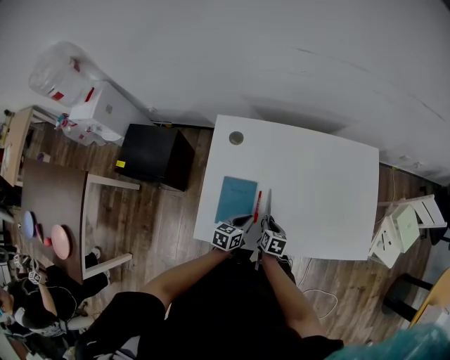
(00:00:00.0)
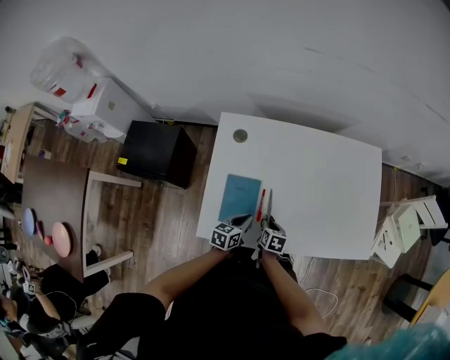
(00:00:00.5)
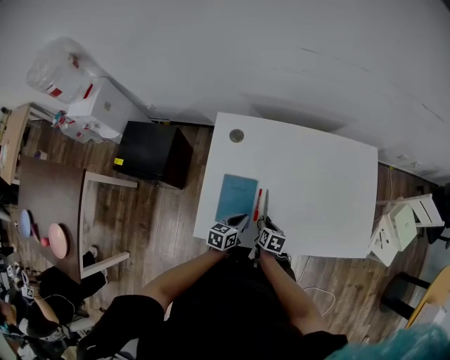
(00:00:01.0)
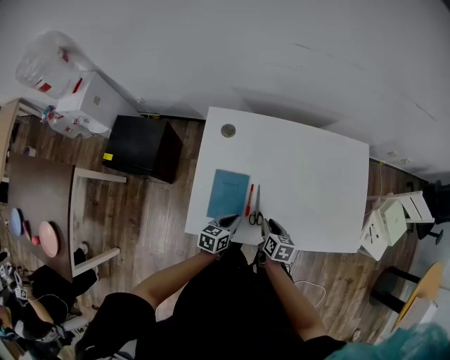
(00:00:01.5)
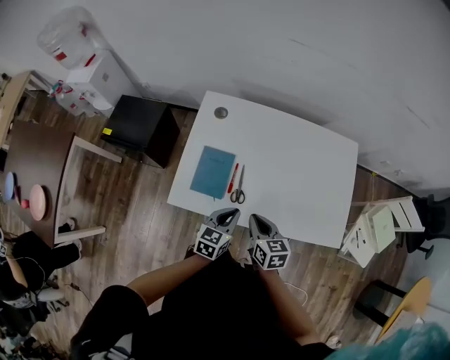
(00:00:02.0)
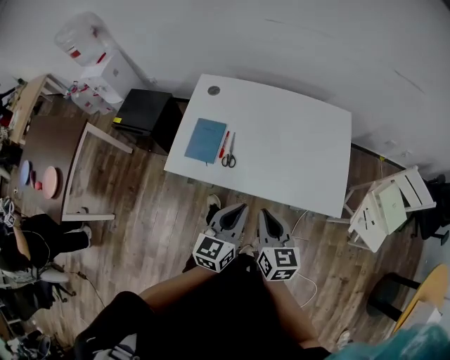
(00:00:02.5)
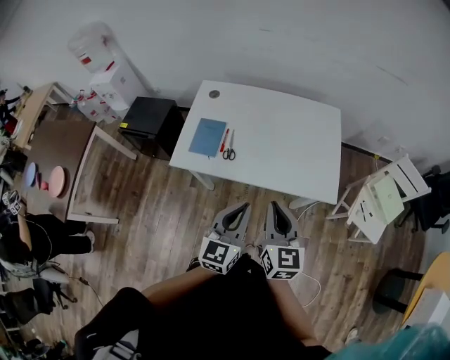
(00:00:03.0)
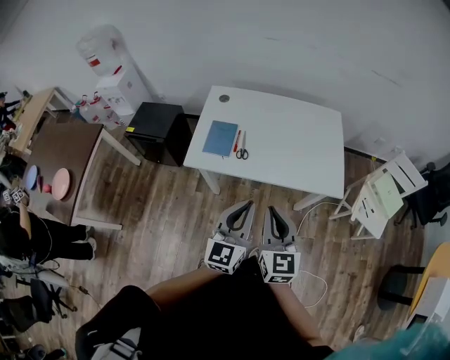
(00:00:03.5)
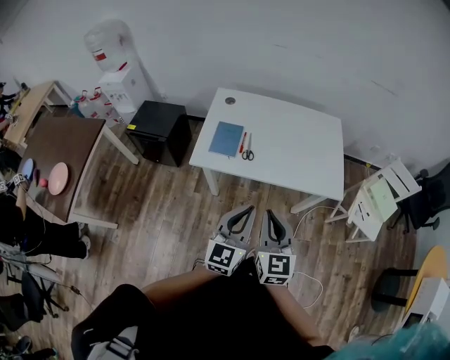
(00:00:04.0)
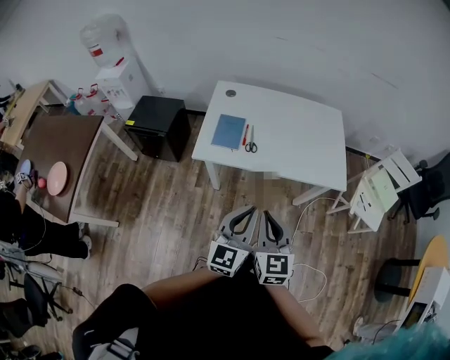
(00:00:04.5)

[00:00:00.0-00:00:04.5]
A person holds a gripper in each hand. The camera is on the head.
00:00:00.0 to 00:00:02.0: The right gripper travels upward by approximately 20 cm, and swivels about 30 degrees, while the left gripper goes about 15 cm upward, backward and to the right.
00:00:02.0 to 00:00:04.5: Both grippers move backward and upward, roughly 40 cm. The right gripper turns by some 30 degrees. The left gripper changes its angle by approximately 30 degrees.

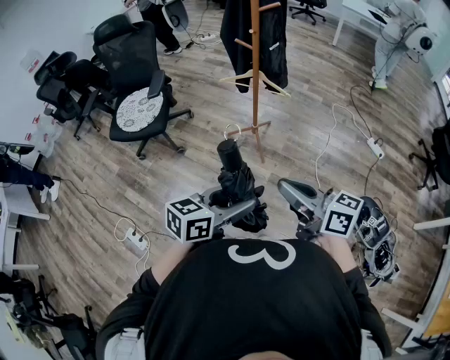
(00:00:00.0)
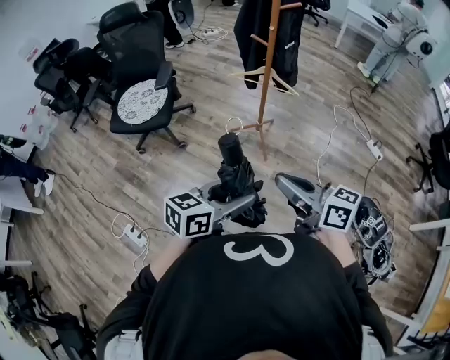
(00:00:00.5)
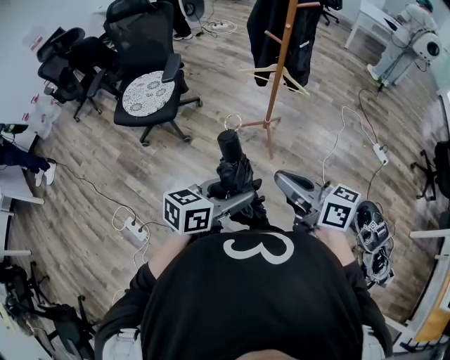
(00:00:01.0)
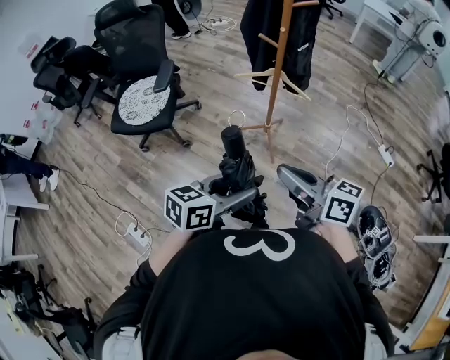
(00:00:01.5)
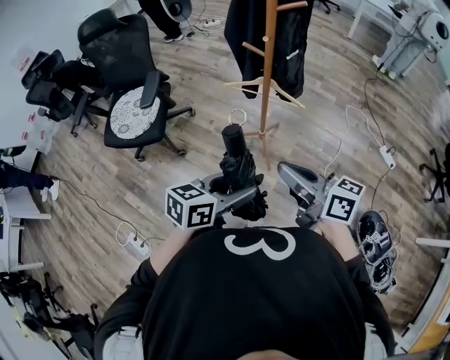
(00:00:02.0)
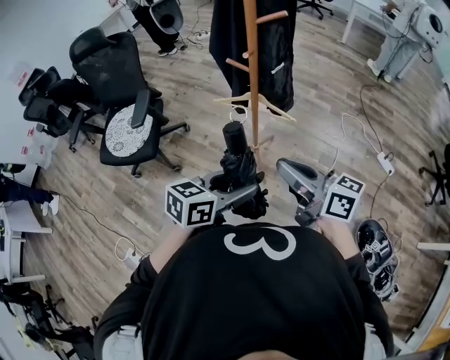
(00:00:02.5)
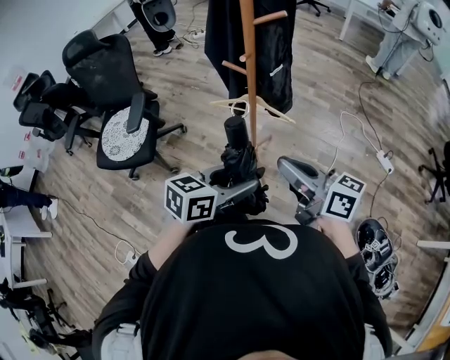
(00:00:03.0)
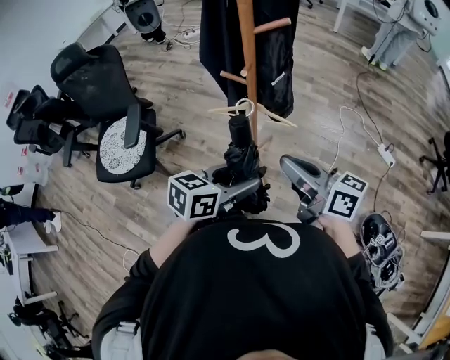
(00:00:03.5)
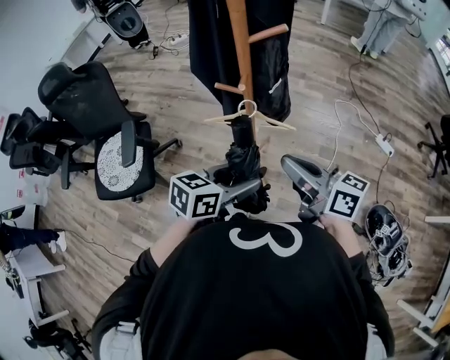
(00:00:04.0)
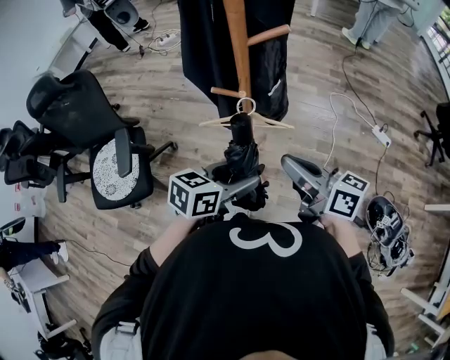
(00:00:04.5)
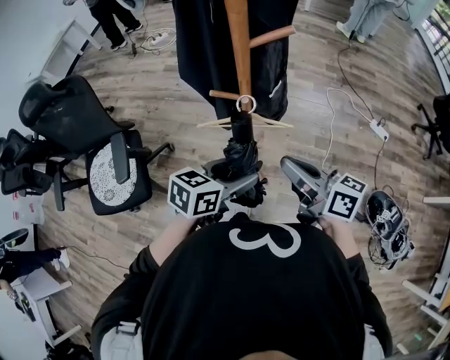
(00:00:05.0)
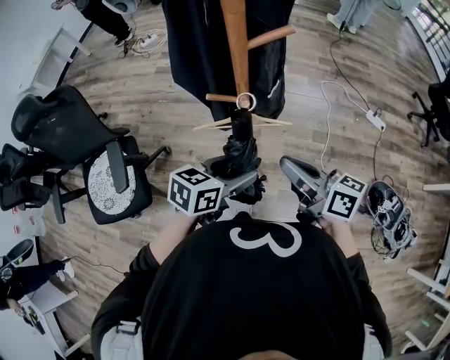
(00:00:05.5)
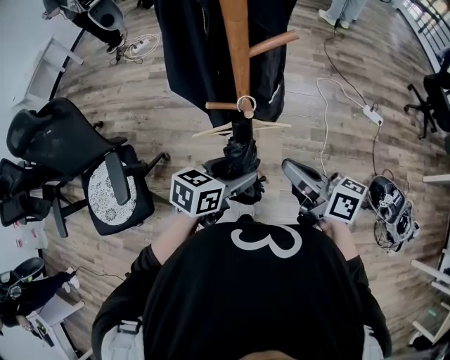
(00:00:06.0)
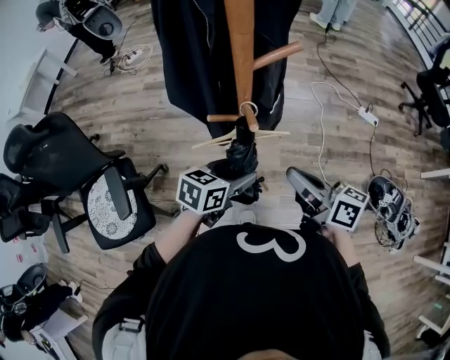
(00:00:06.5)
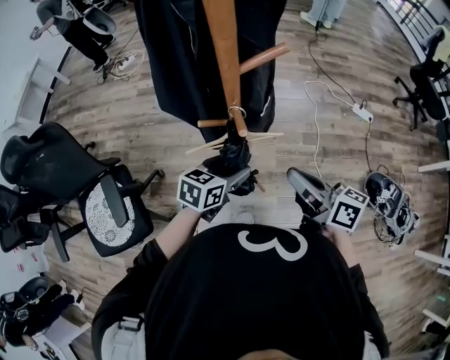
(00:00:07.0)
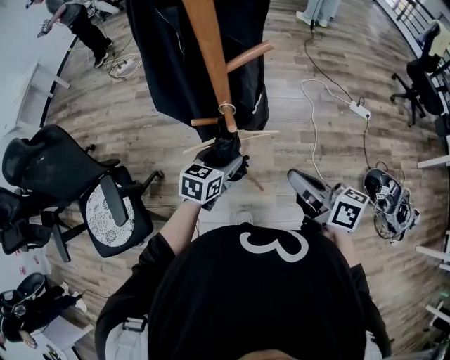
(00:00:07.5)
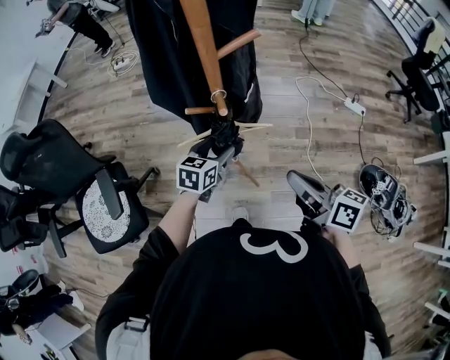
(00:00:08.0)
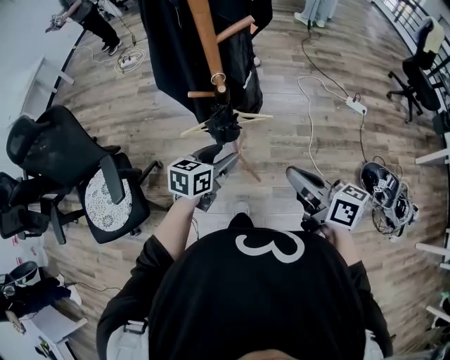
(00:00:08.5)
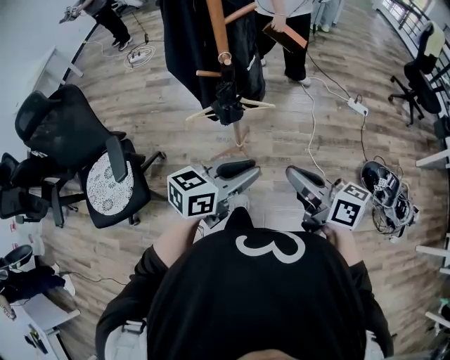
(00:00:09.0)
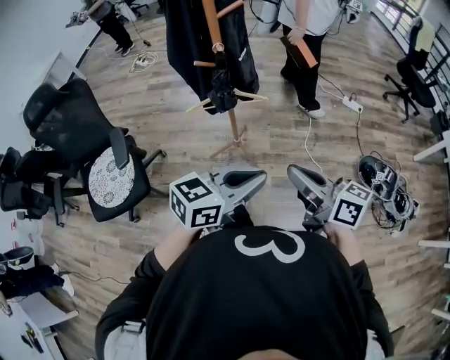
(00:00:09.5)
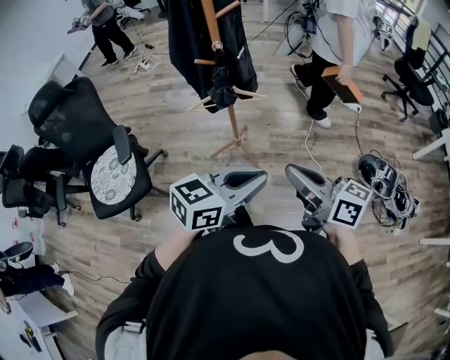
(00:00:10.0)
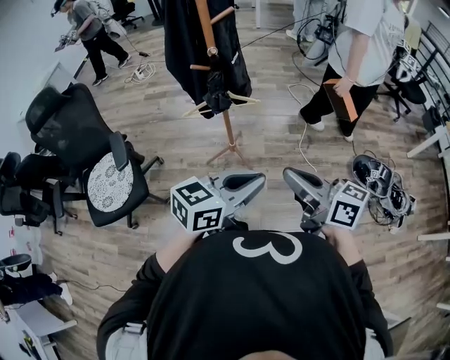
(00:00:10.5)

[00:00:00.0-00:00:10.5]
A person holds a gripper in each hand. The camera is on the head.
00:00:00.0 to 00:00:02.0: The grippers both shift forward by about 25 cm.
00:00:02.0 to 00:00:04.0: Both grippers move forward, about 20 cm.
00:00:04.0 to 00:00:06.5: The right gripper shifts about 5 cm forward, and swivels roughly 20 degrees, while the left gripper shifts some 15 cm forward, downward and to the left.
00:00:06.5 to 00:00:08.5: The right gripper moves backward and to the right, some 15 cm. Meanwhile the left gripper travels backward by about 5 cm.
00:00:08.5 to 00:00:10.5: The left gripper heads backward, upward and to the right, covering some 40 cm, changes its angle by about 30 degrees, and closes up. The right gripper heads backward, covering roughly 25 cm.

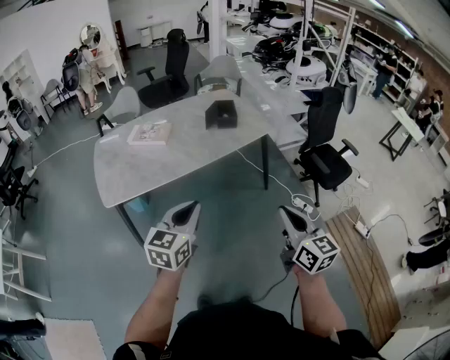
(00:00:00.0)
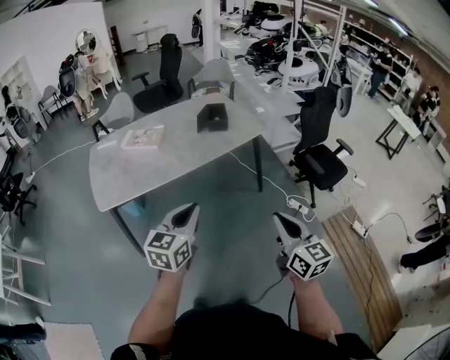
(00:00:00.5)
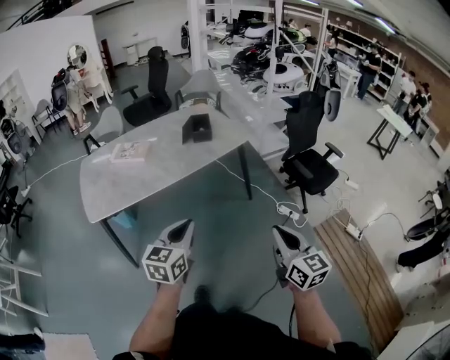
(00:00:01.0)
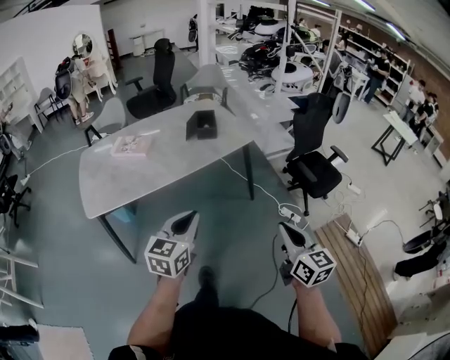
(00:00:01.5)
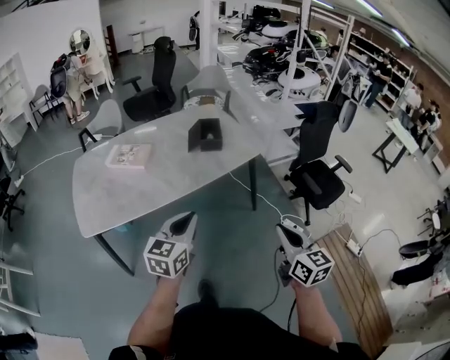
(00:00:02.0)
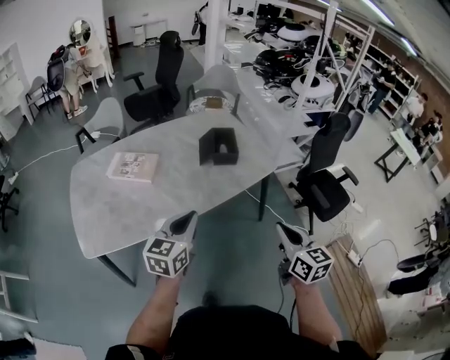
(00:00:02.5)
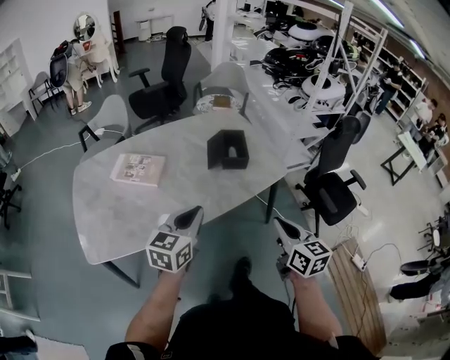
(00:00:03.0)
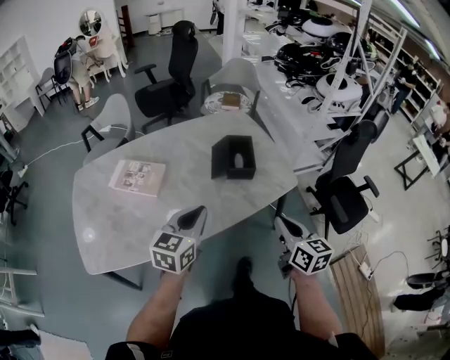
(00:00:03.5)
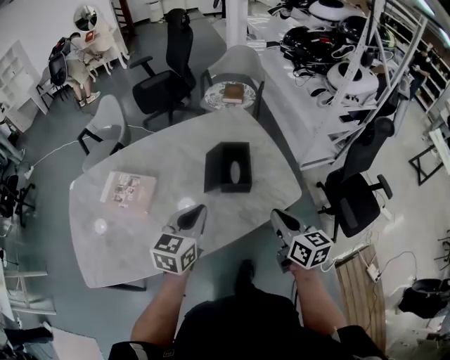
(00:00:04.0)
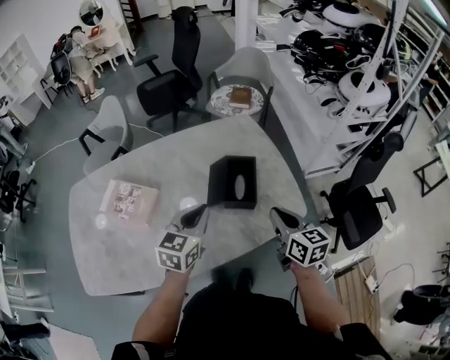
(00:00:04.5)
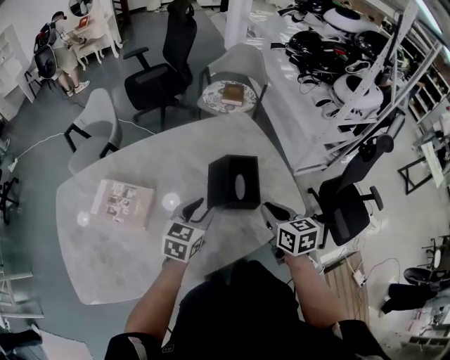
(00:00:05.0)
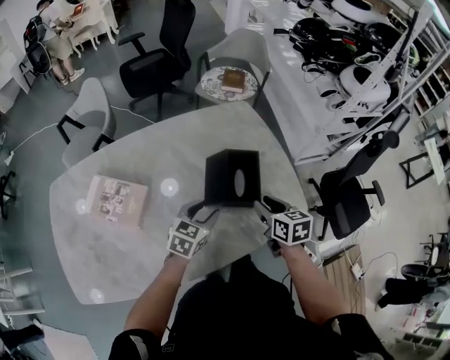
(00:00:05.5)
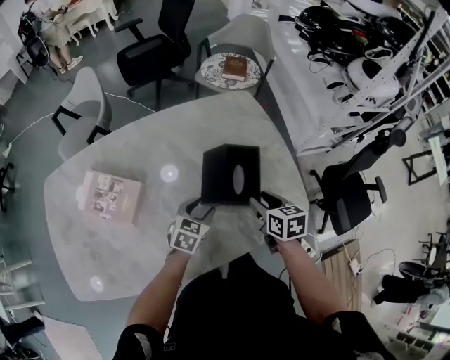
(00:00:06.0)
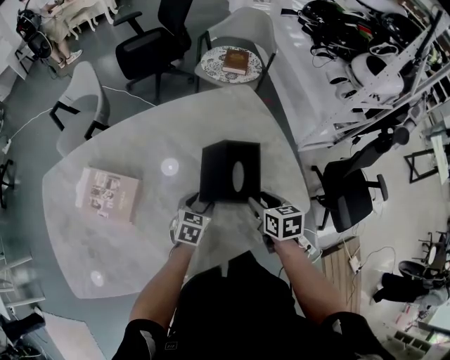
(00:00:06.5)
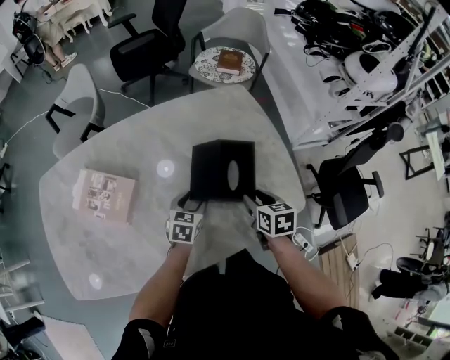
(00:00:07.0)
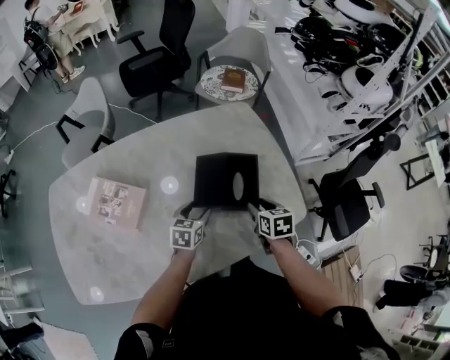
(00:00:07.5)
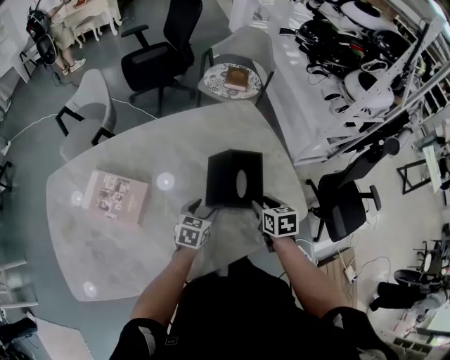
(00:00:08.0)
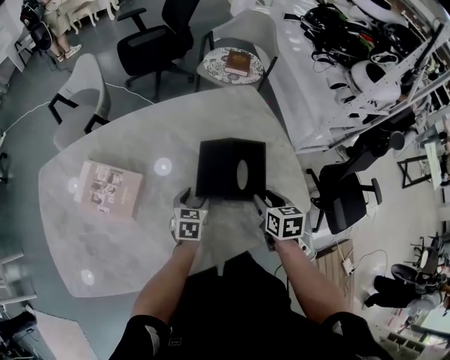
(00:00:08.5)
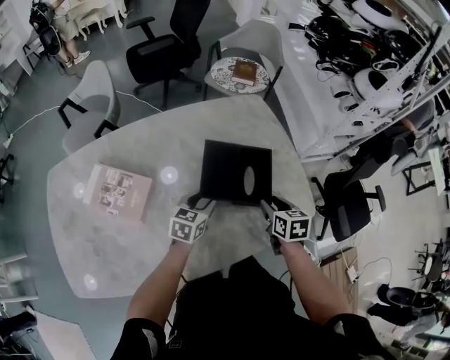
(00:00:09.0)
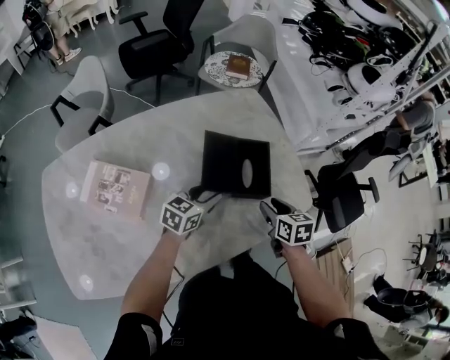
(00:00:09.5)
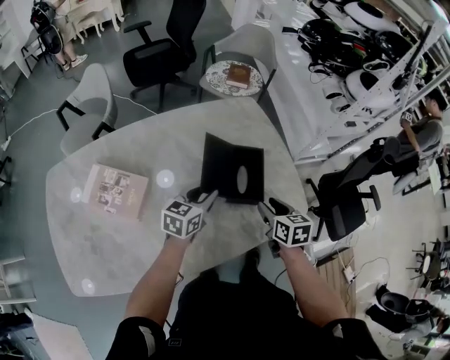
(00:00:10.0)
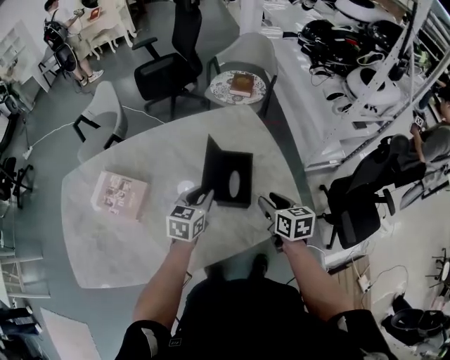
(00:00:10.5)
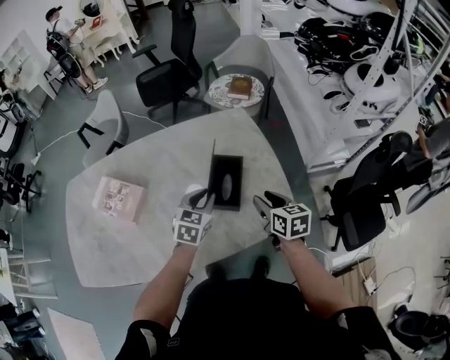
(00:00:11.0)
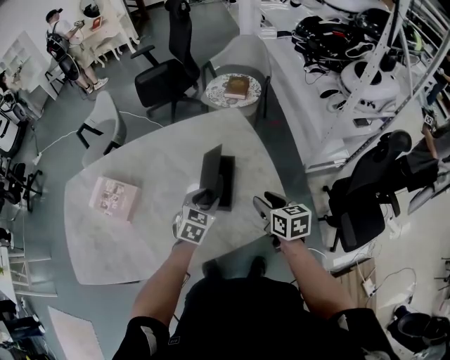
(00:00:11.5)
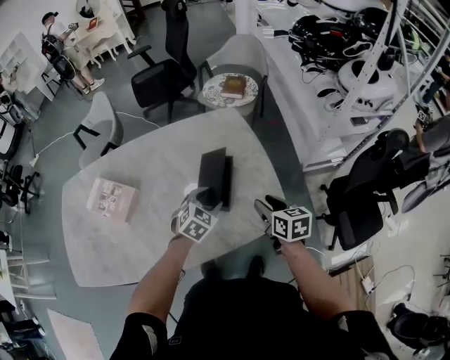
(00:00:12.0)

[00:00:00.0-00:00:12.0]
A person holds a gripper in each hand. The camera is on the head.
00:00:00.0 to 00:00:02.0: The left gripper travels forward by approximately 15 cm; the right gripper is displaced forward and to the right by roughly 15 cm.
00:00:02.0 to 00:00:04.0: Both grippers are carried forward, about 50 cm.
00:00:04.0 to 00:00:06.0: The left gripper travels downward and forward by approximately 25 cm, rotates about 20 degrees, and opens; the right gripper moves forward and downward, approximately 25 cm, swivels about 30 degrees, and opens its fingers.
00:00:08.0 to 00:00:10.0: The left gripper travels upward by some 10 cm, and closes its fingers.
00:00:10.0 to 00:00:12.0: The grippers both shift to the right by roughly 15 cm. The left gripper swivels roughly 40 degrees, and opens up.
